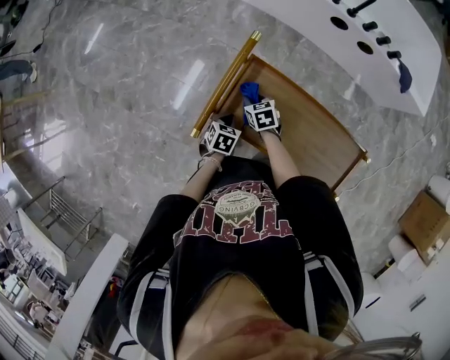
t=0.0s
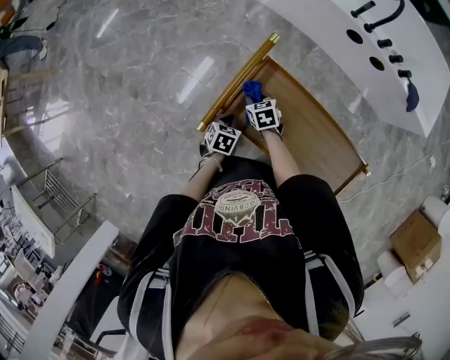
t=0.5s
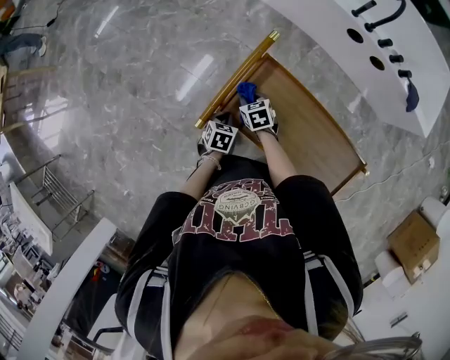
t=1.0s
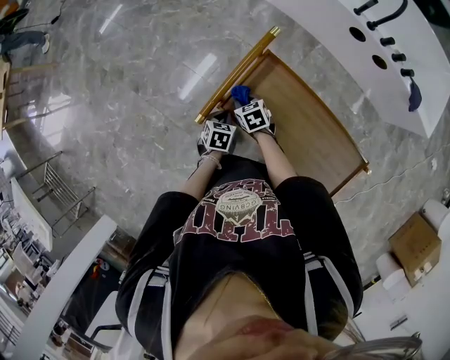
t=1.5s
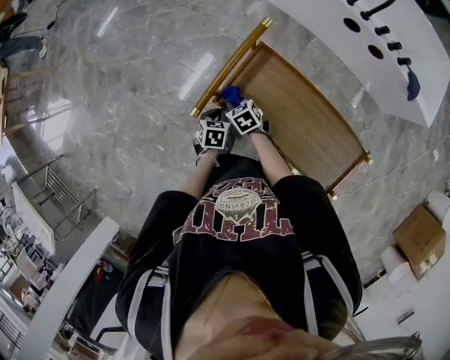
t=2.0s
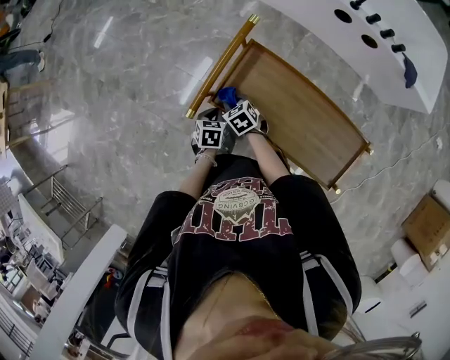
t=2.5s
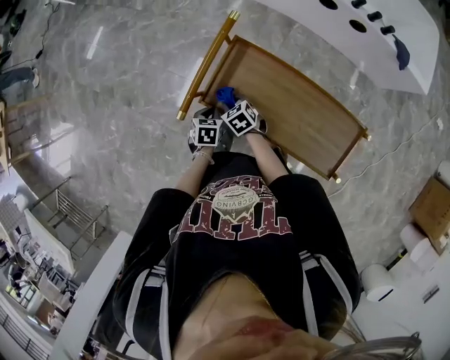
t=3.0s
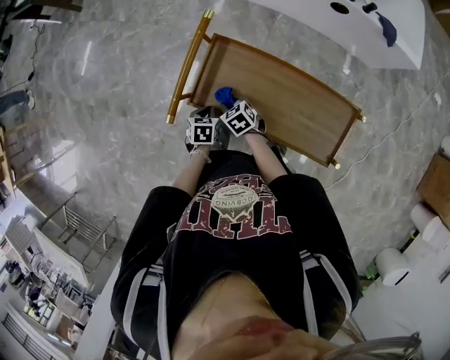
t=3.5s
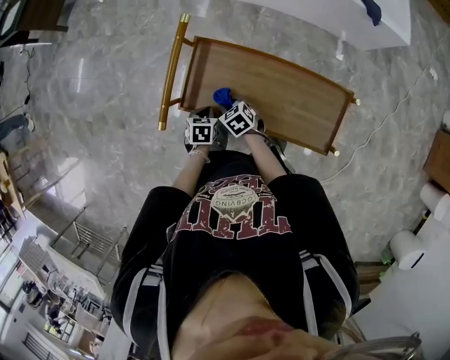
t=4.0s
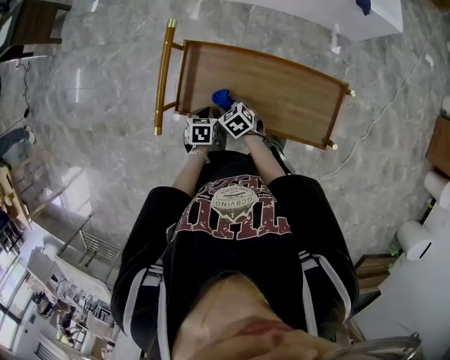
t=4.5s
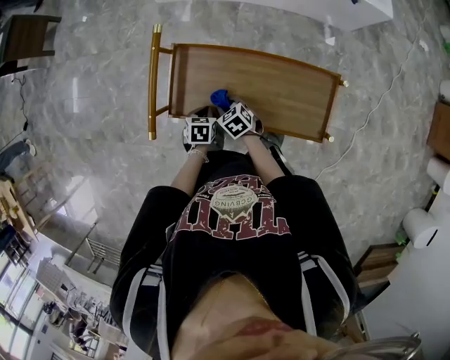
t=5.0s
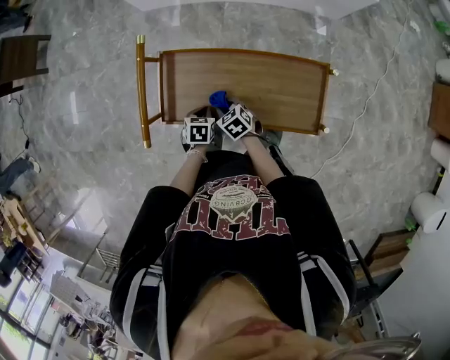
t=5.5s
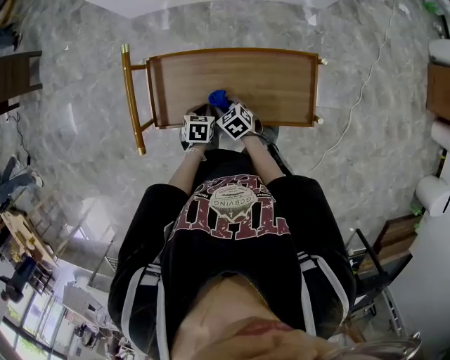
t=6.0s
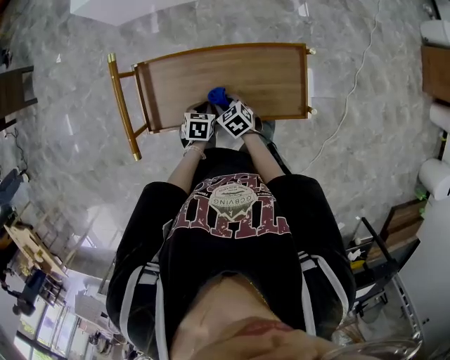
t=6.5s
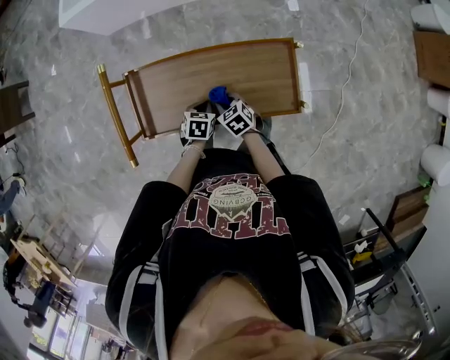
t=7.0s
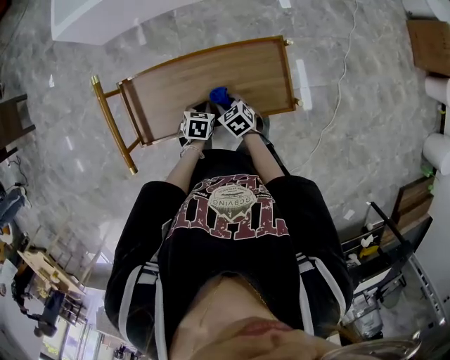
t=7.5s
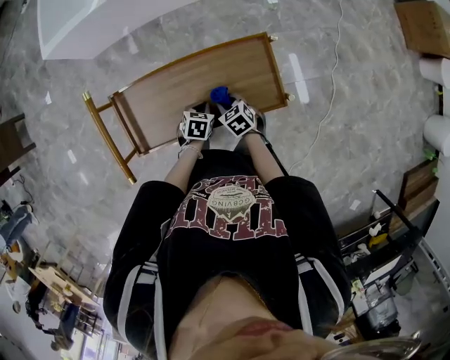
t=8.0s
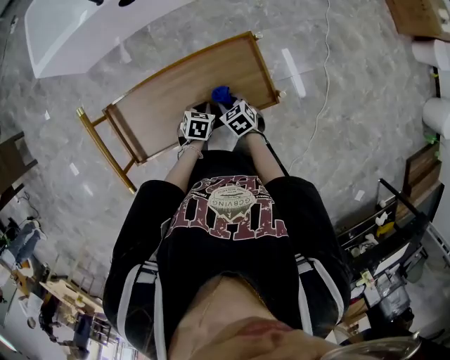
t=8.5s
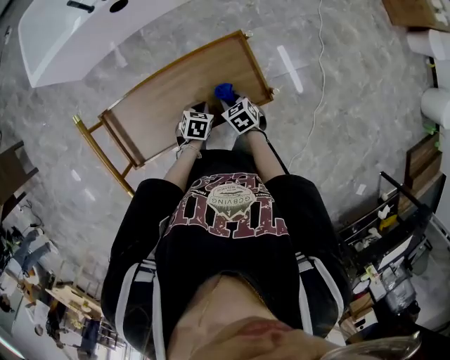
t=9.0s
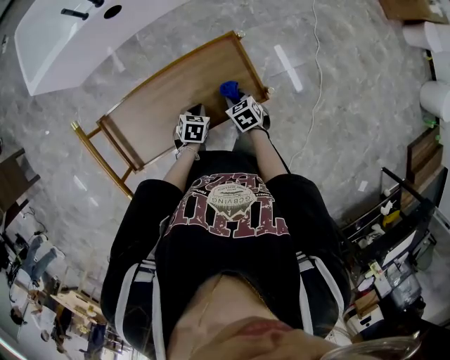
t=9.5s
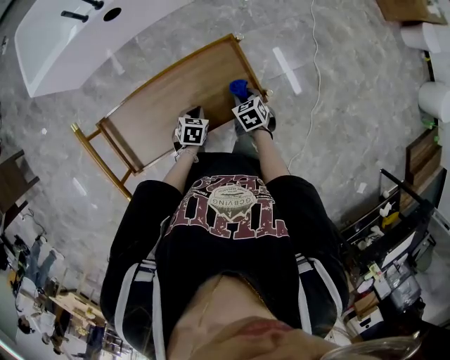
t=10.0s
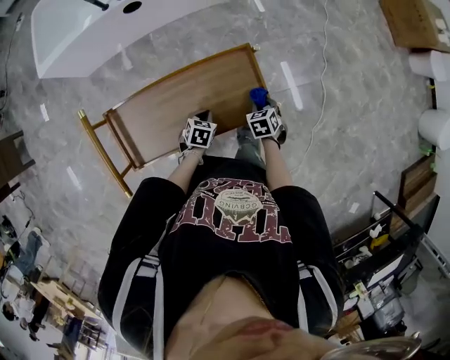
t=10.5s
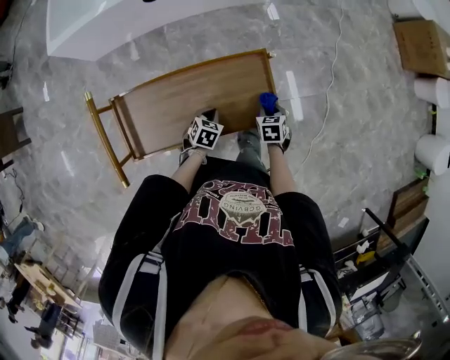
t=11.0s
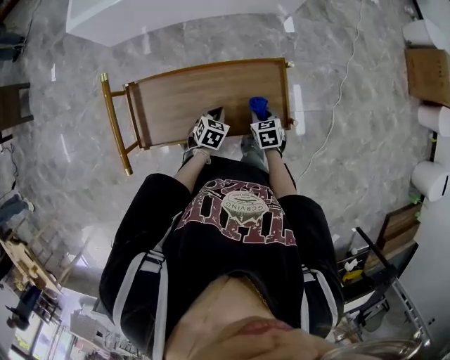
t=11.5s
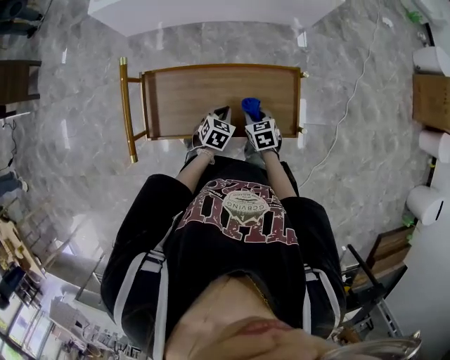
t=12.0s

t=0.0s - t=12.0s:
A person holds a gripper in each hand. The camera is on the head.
t=0.0s - t=2.0s: The right gripper shifts some 10 cm to the left and backward, and rotates about 20 degrees. Meanwhile the left gripper moves to the left, roughly 5 cm.
t=2.0s - t=4.0s: The left gripper goes about 10 cm to the right. Meanwhile the right gripper goes approximately 15 cm to the right and backward.
t=4.0s - t=6.0s: The grippers both shift to the right by approximately 10 cm.
t=6.0s - t=8.0s: The grippers both shift to the right by approximately 15 cm. The left gripper changes its angle by roughly 20 degrees.
t=8.0s - t=10.0s: The left gripper travels to the right by roughly 5 cm, while the right gripper travels to the right by some 15 cm, and rotates roughly 20 degrees.
t=10.0s - t=12.0s: The right gripper ends up roughly 15 cm from where it was; the left gripper ends up roughly 10 cm from where it was.

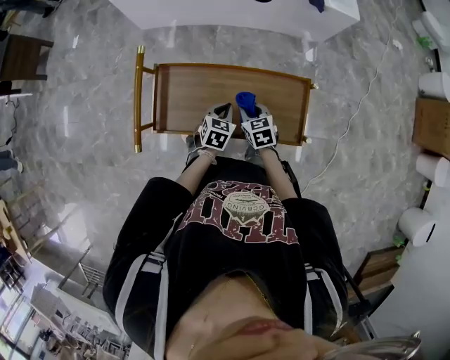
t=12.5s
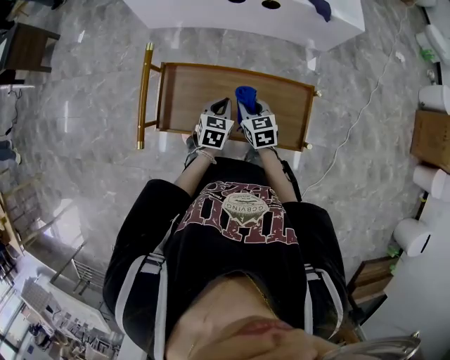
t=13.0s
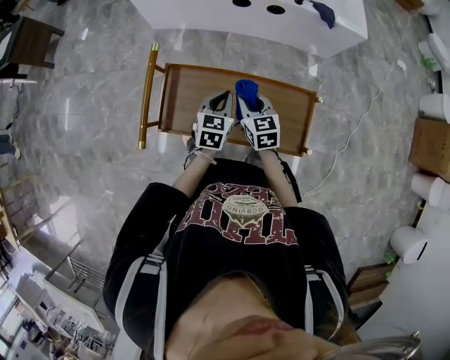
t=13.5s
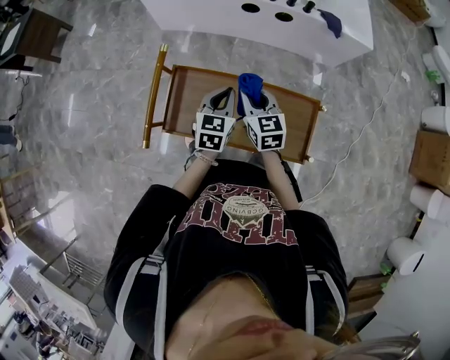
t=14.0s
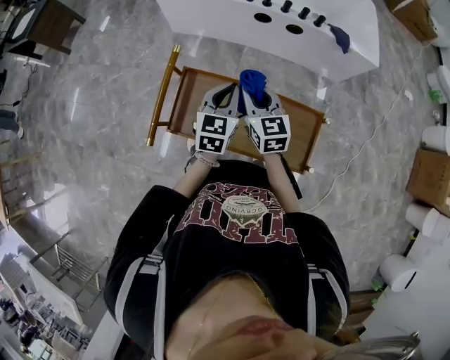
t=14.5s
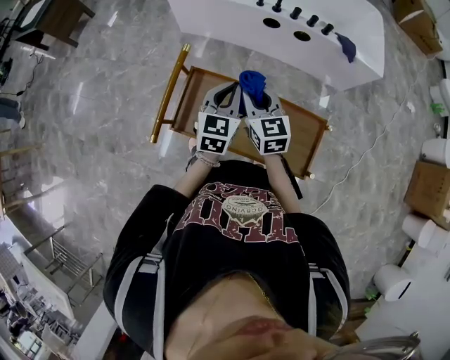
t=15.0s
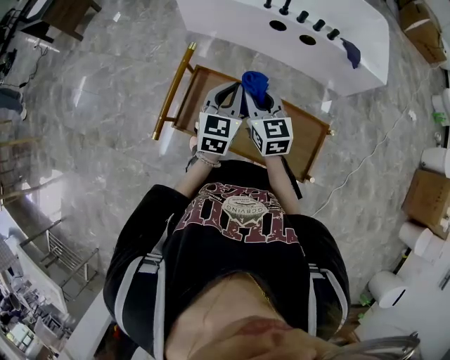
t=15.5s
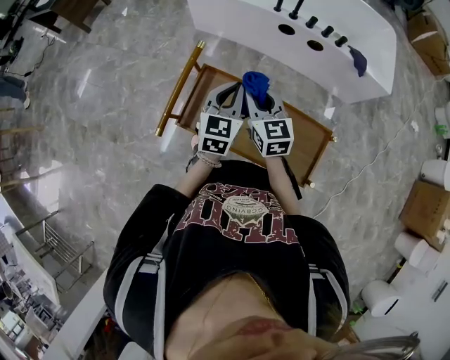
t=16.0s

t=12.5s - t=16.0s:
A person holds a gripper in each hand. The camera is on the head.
t=12.5s - t=14.5s: Both grippers move upward and forward, roughly 20 cm. The left gripper swivels about 30 degrees; the right gripper turns by some 30 degrees.
t=14.5s - t=16.0s: The right gripper shifts some 5 cm to the left.

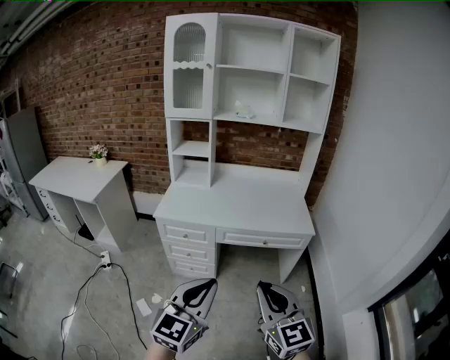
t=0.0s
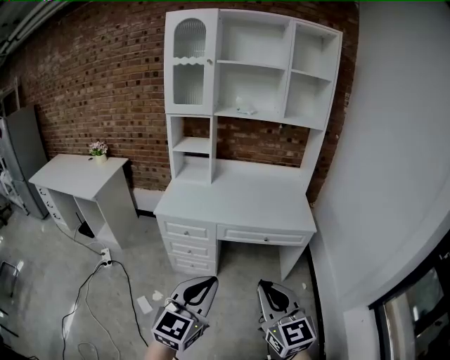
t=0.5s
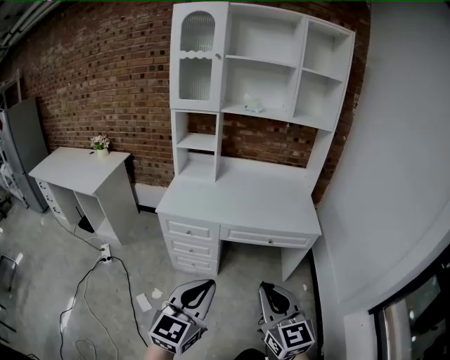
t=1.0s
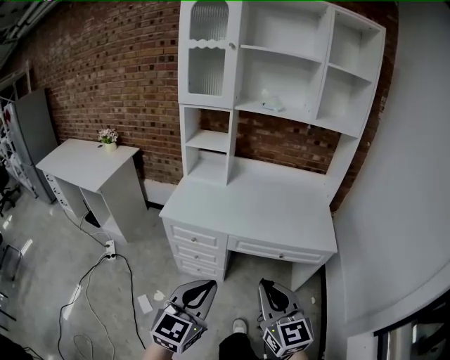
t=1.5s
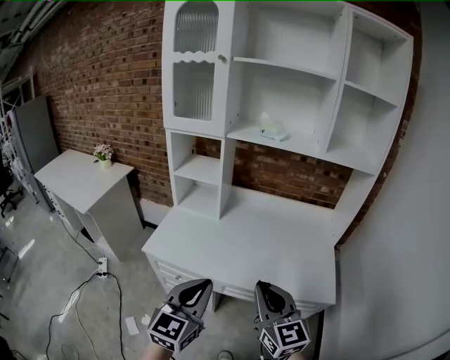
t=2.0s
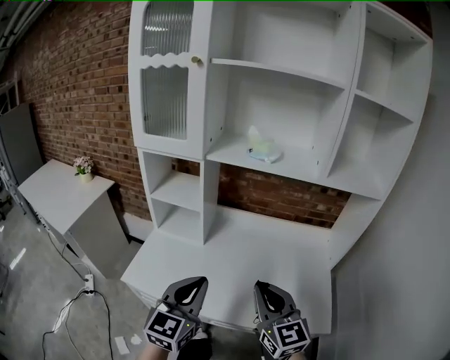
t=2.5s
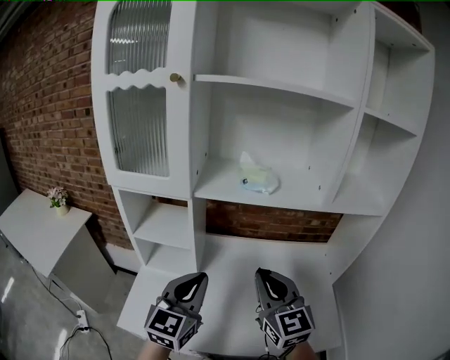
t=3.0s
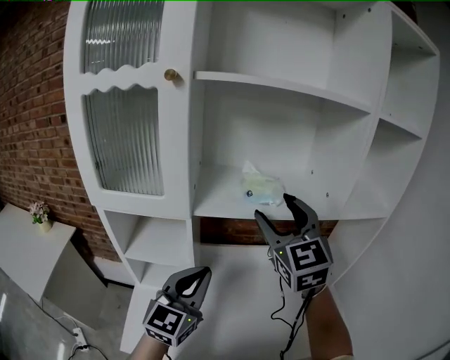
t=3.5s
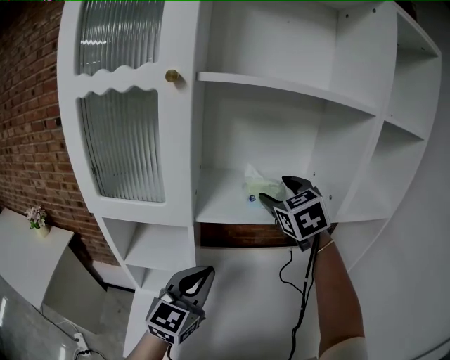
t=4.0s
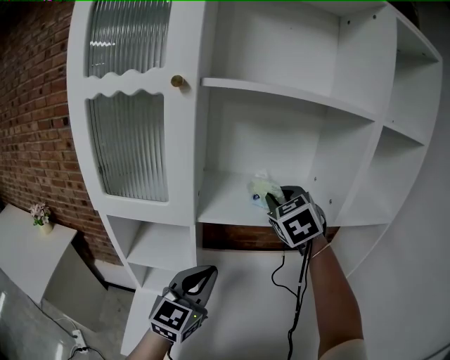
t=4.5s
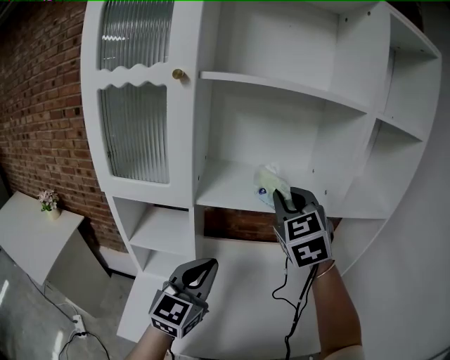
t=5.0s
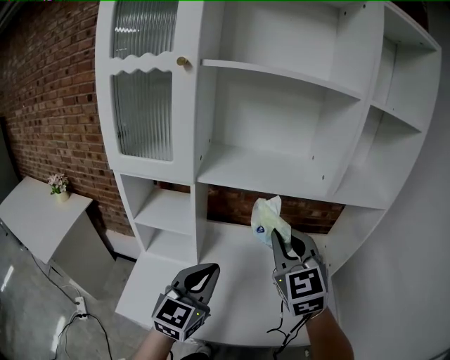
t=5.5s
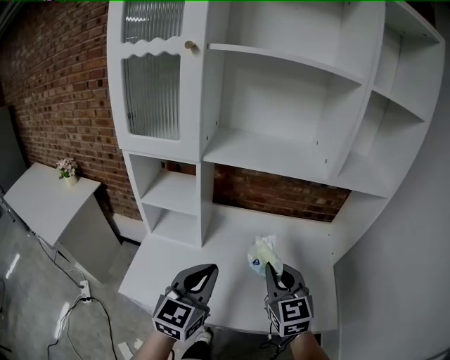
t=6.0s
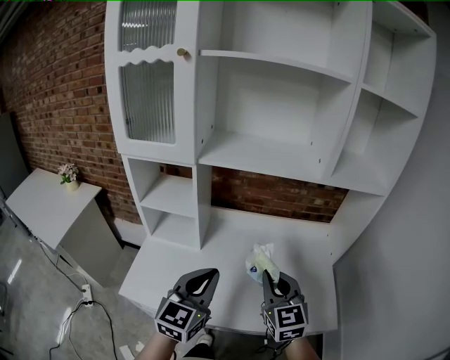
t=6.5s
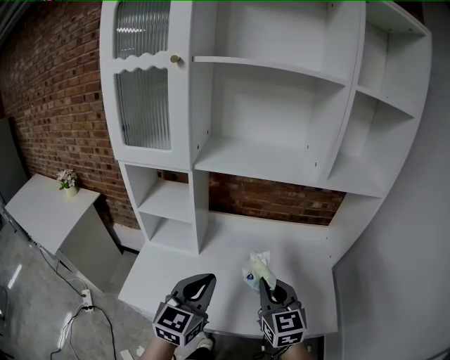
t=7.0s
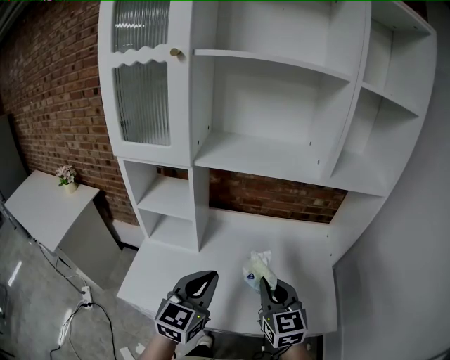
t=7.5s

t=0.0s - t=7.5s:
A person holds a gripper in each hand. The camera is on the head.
t=0.0s - t=2.0s: Both grippers move forward, about 40 cm.
t=2.0s - t=4.0s: Both grippers are carried forward, some 50 cm. The right gripper rotates some 30 degrees, and opens. The left gripper turns by some 20 degrees.
t=4.0s - t=5.5s: The right gripper shifts approximately 20 cm backward, and closes up, while the left gripper goes some 15 cm backward and to the right.
t=5.5s - t=7.5s: The left gripper moves downward and backward, about 5 cm. Meanwhile the right gripper shifts about 20 cm downward and backward, and swivels about 20 degrees.

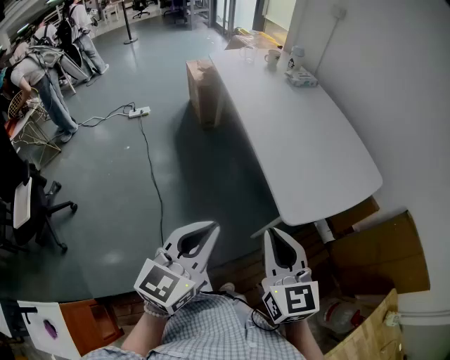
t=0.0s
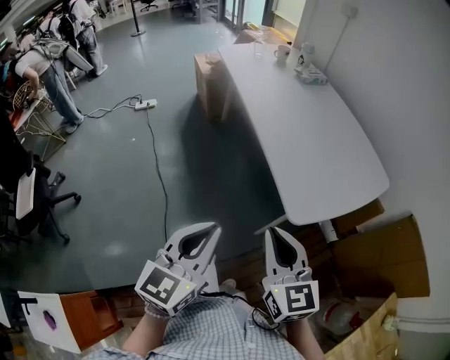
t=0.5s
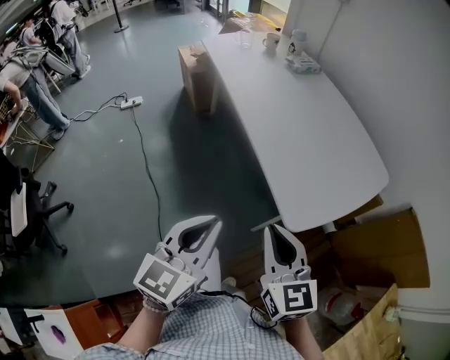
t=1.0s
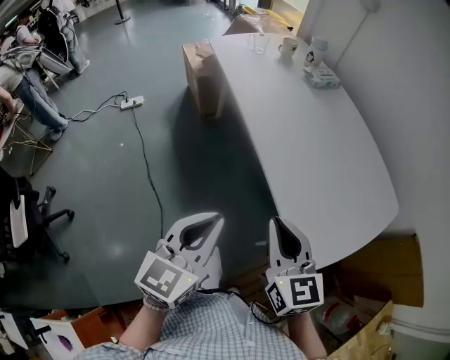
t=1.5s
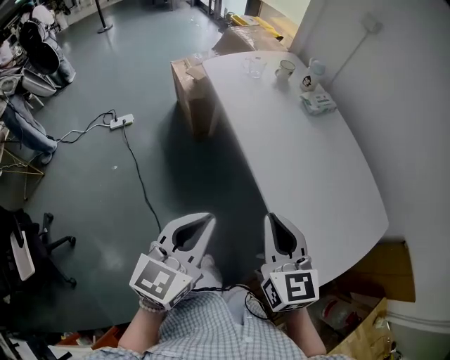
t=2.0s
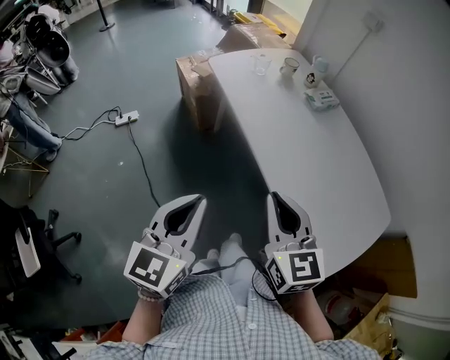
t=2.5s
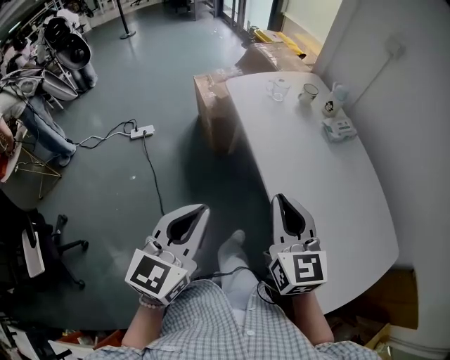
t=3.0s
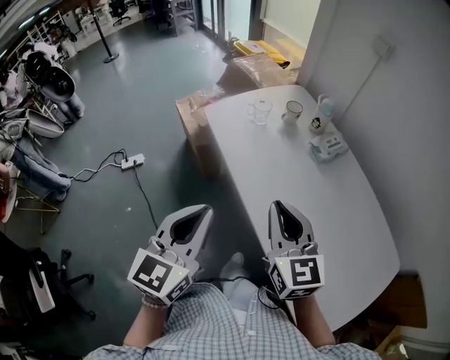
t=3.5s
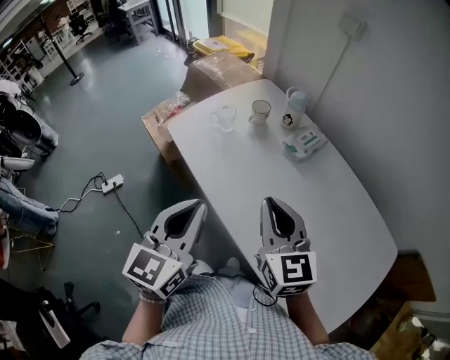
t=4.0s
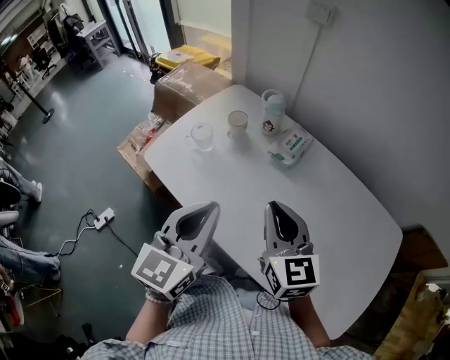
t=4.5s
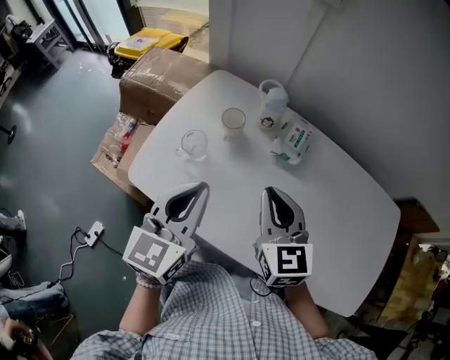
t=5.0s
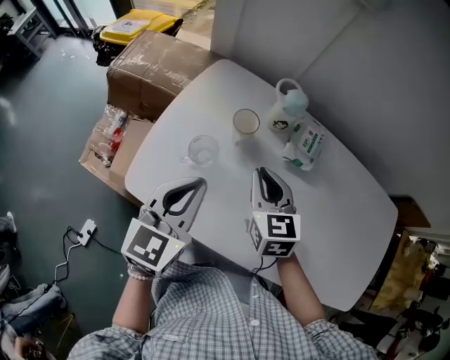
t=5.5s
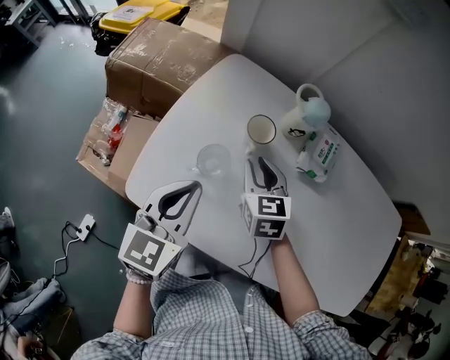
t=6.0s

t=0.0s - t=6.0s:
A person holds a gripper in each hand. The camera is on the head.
t=0.0s - t=2.0s: The grippers both shift forward and to the left by approximately 35 cm.
t=2.0s - t=4.0s: The two grippers go about 30 cm forward.
t=4.0s - t=6.0s: The left gripper shifts by approximately 40 cm, and changes its angle by roughly 30 degrees. The right gripper ends up about 40 cm from where it was, and turns by some 40 degrees.
